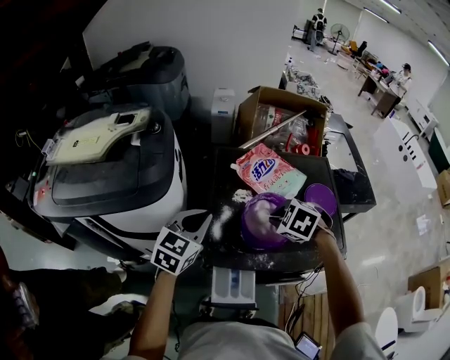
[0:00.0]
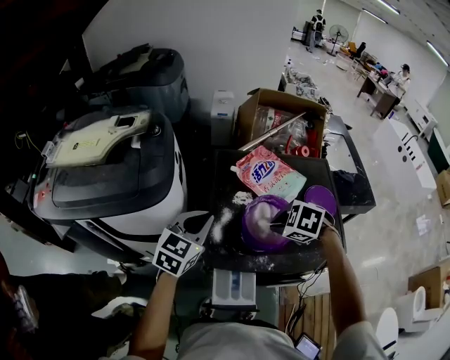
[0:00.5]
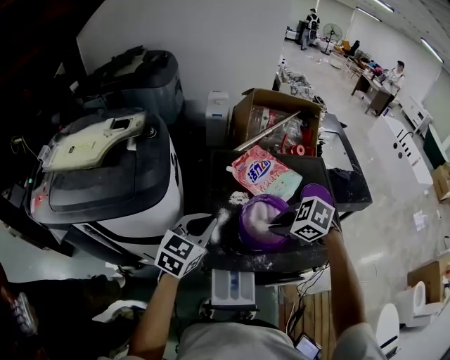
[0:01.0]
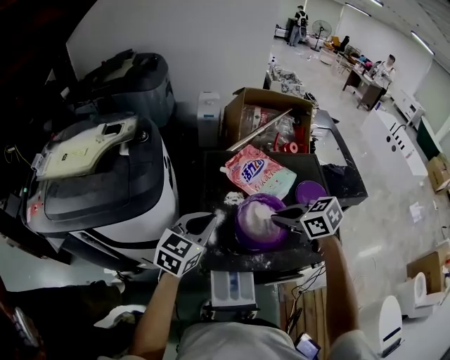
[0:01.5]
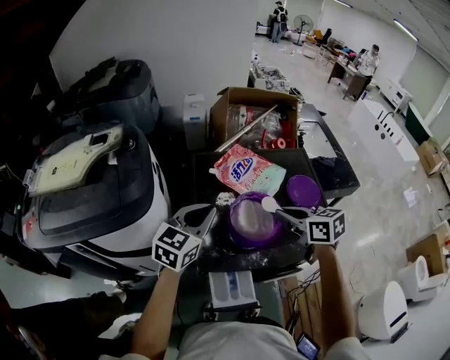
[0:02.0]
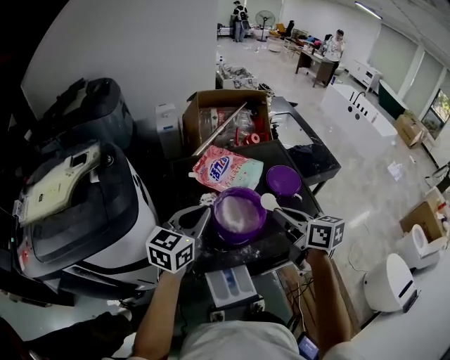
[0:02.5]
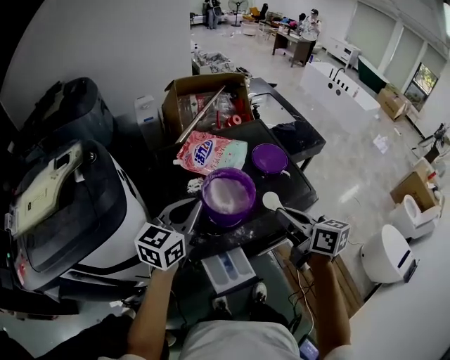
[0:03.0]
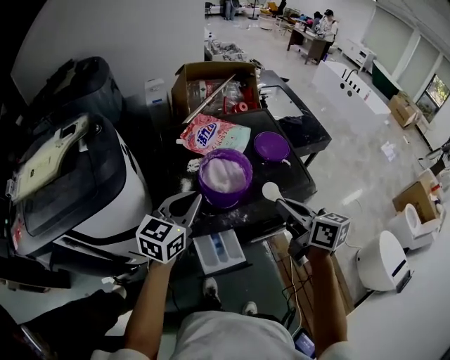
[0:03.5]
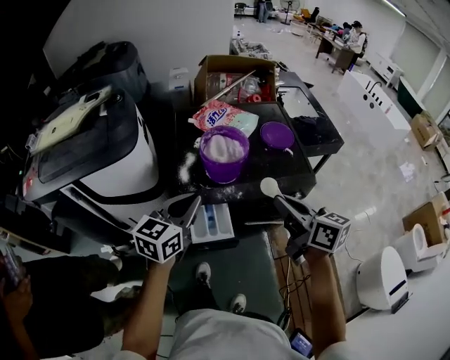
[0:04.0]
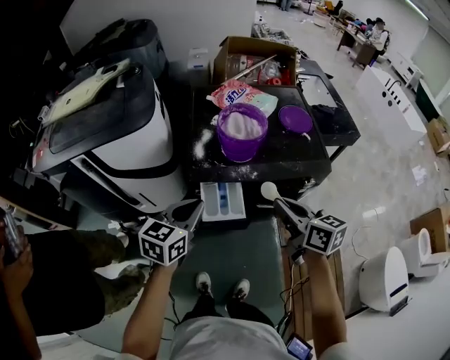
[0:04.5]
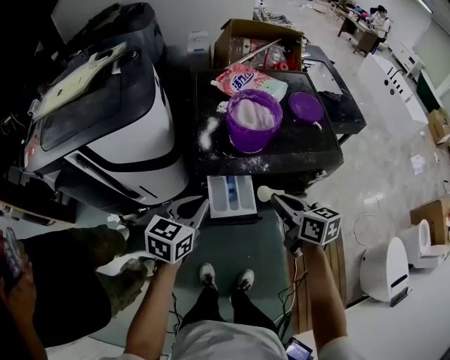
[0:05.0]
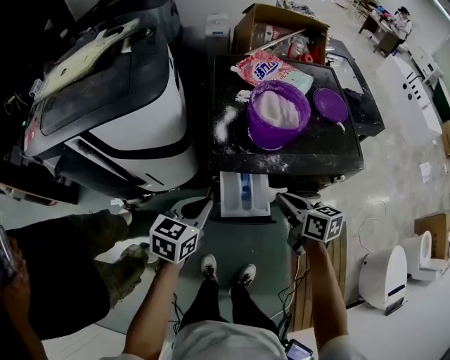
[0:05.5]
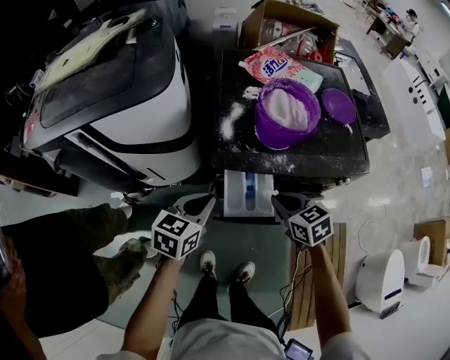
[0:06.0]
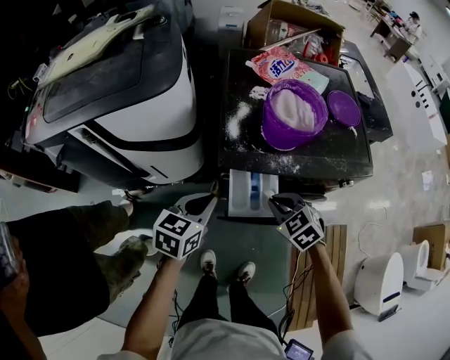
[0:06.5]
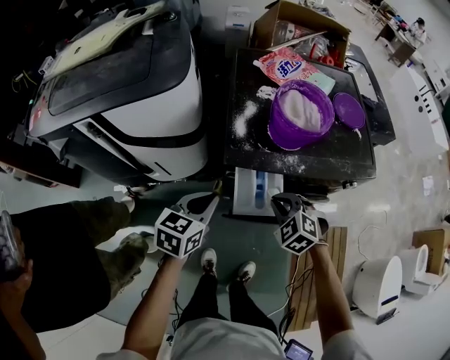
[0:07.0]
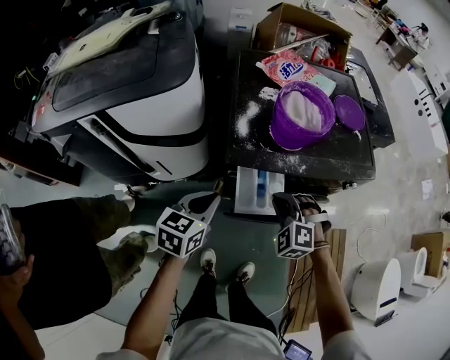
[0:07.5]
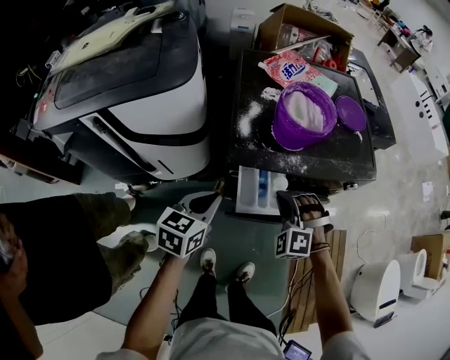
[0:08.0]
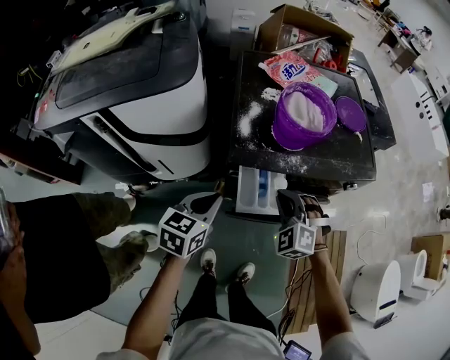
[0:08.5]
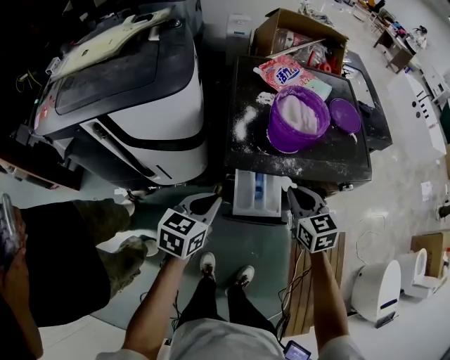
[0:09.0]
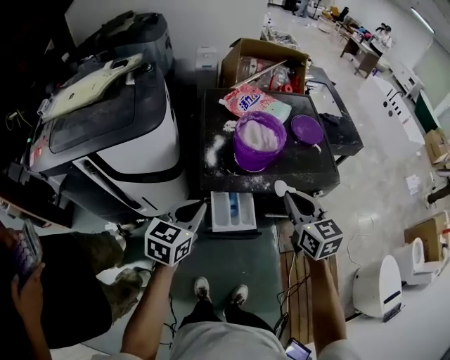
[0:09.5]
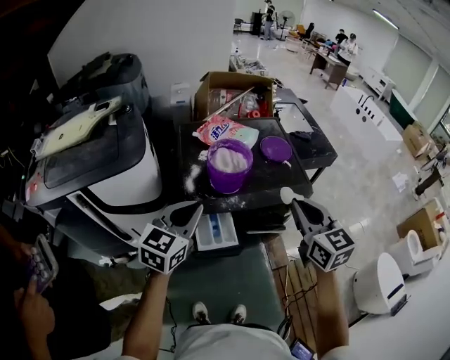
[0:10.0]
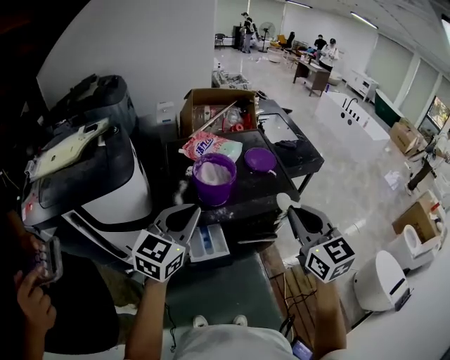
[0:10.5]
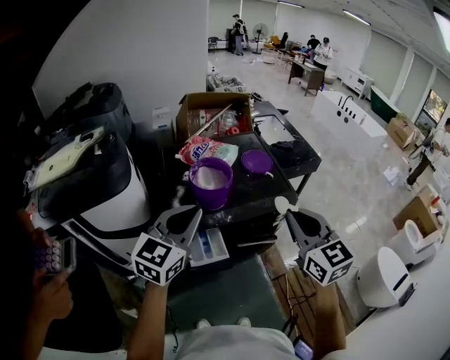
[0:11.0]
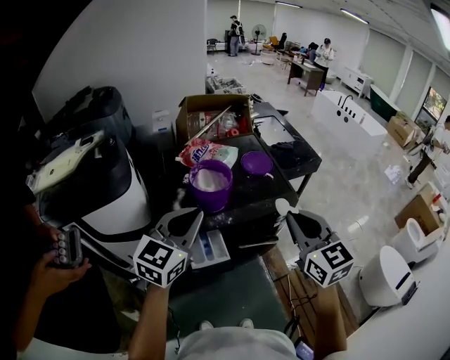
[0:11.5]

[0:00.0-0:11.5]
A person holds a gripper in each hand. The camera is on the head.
0:00.0 to 0:02.0: The left gripper heads to the right, covering approximately 5 cm. The right gripper goes roughly 10 cm upward and to the right, and tilts its fingers roughly 40 degrees upward.
0:02.0 to 0:04.0: The grippers both shift backward by roughly 20 cm. The right gripper swivels roughly 20 degrees.
0:04.0 to 0:06.0: Both grippers move downward and to the left, some 20 cm. The left gripper rotates roughly 20 degrees. The right gripper points its fingers some 30 degrees further downward.
0:06.0 to 0:07.5: The right gripper rotates around the line of its fingers by roughly 60 degrees, counterclockwise from behind.
0:07.5 to 0:09.5: The left gripper heads upward, covering approximately 10 cm. The right gripper shifts about 20 cm upward and to the right, and twists roughly 60 degrees clockwise, seen from behind.
0:09.5 to 0:11.5: The right gripper is displaced upward, to the right and backward by approximately 20 cm; the left gripper travels upward and to the right by about 20 cm, and rotates about 30 degrees.

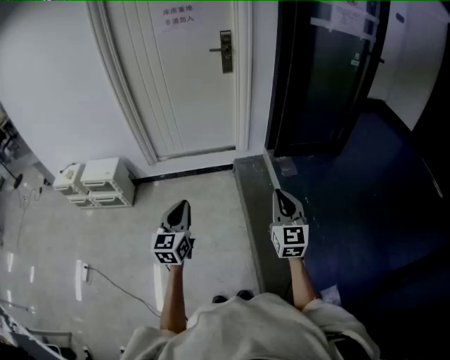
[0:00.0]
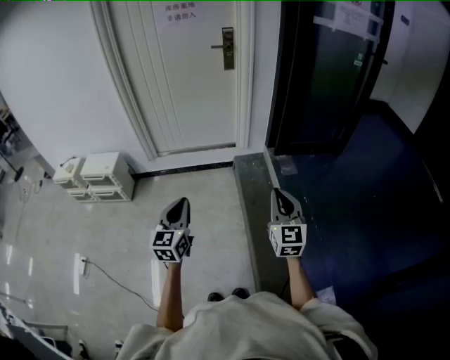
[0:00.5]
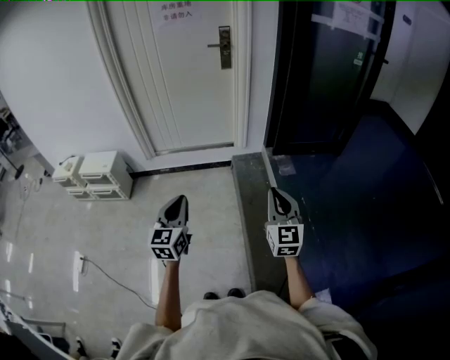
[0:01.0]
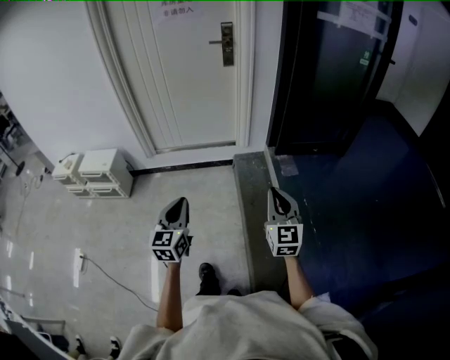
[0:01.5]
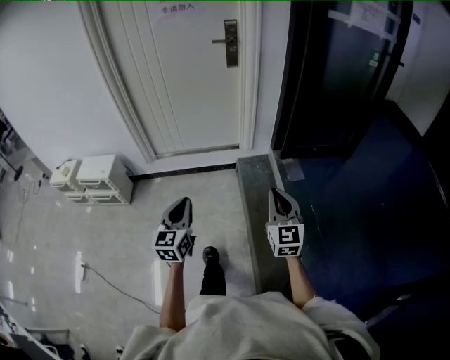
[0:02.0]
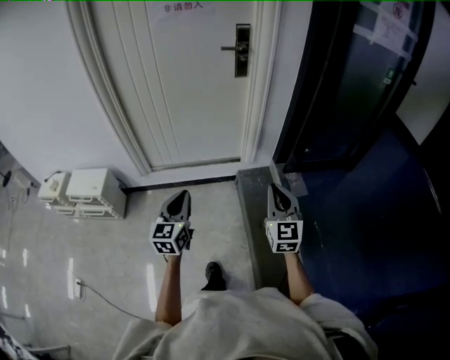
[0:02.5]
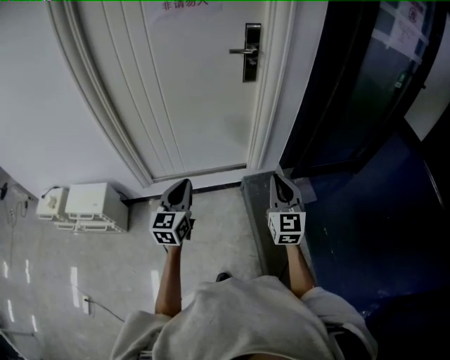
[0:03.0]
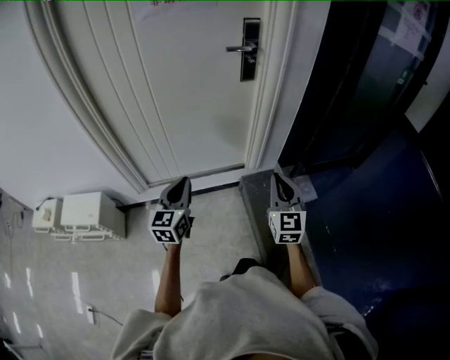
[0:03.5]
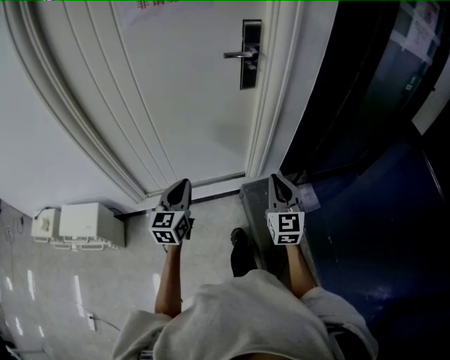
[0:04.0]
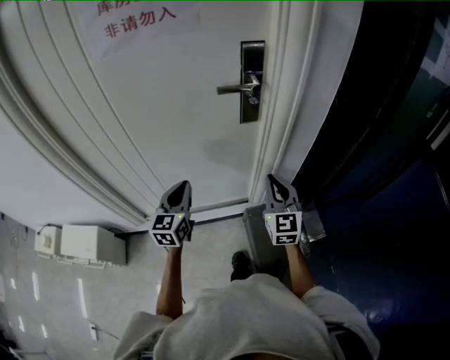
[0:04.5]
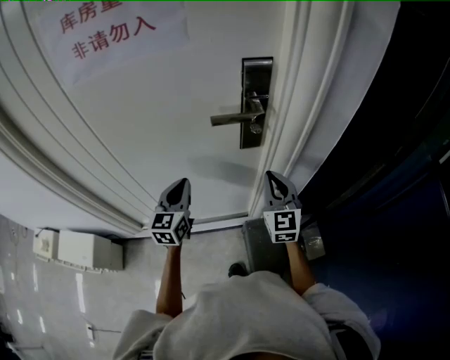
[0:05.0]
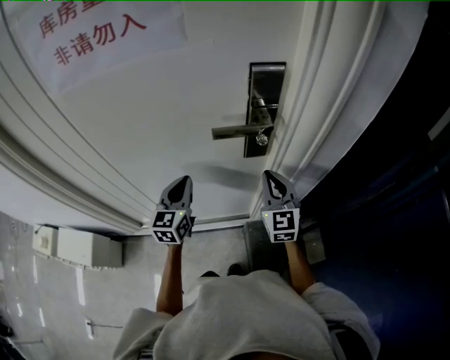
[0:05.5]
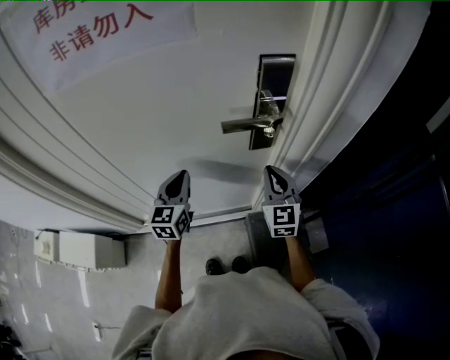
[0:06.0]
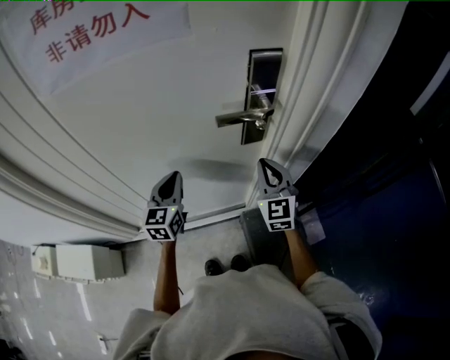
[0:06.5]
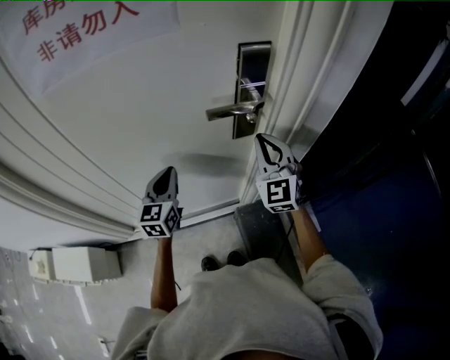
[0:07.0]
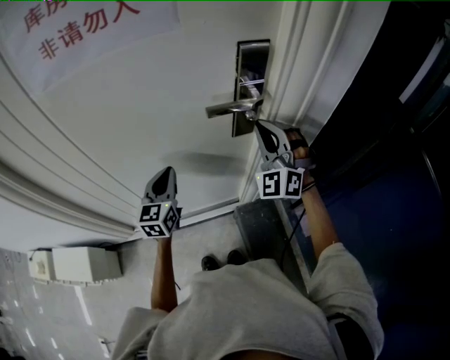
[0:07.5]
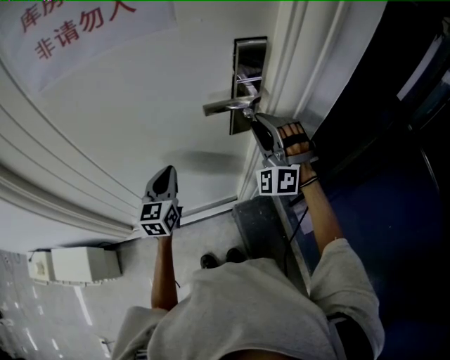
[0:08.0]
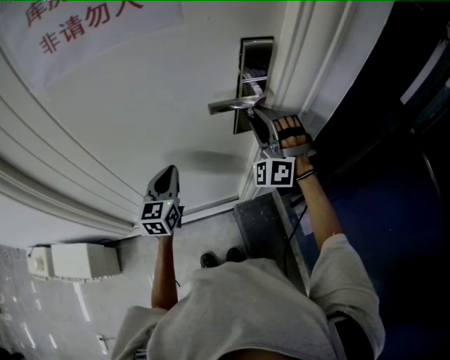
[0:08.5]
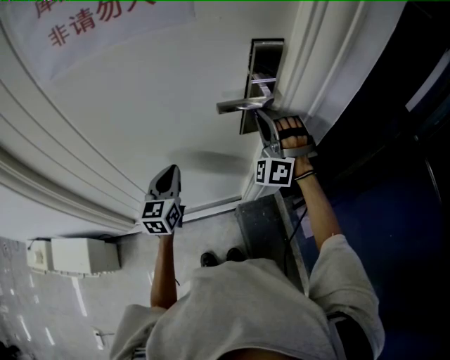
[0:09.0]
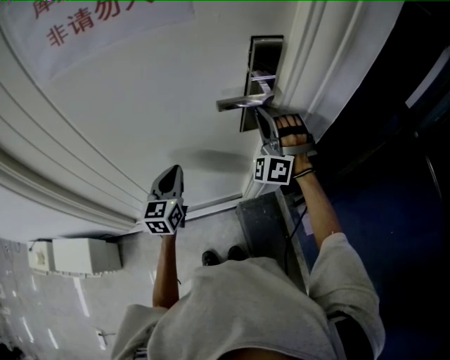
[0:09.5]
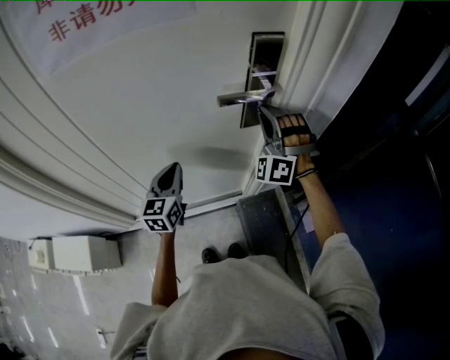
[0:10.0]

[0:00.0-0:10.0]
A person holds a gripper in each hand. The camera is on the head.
0:00.0 to 0:02.0: The two grippers go about 15 cm forward.
0:02.0 to 0:04.0: The pair of grippers is taken forward, about 50 cm.
0:04.0 to 0:06.0: Both grippers move forward, approximately 40 cm.
0:06.0 to 0:08.0: The right gripper goes roughly 10 cm upward, rolls counterclockwise, seen from behind, by some 70 degrees, and opens up.
0:08.0 to 0:10.0: The grippers make only small movements.

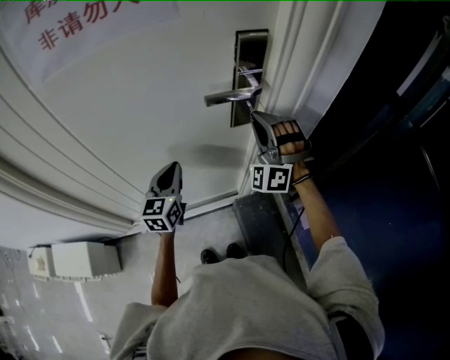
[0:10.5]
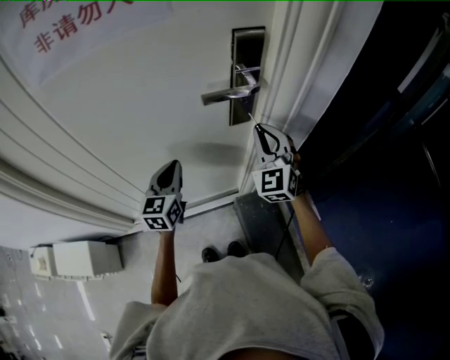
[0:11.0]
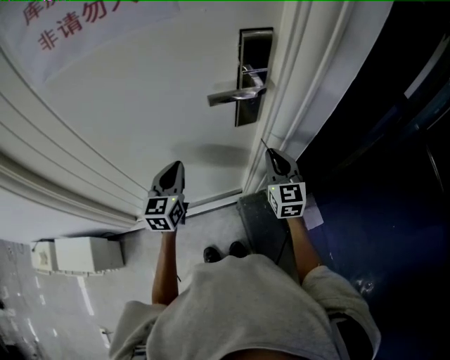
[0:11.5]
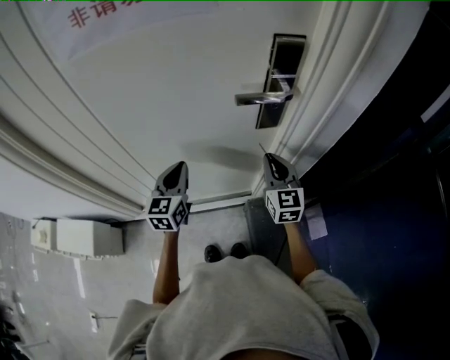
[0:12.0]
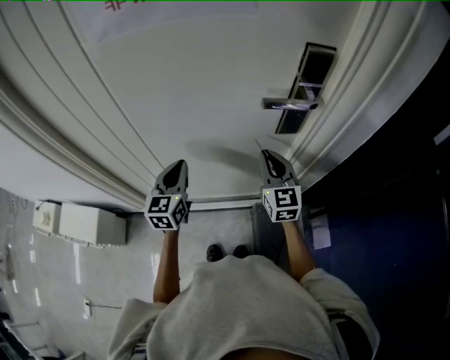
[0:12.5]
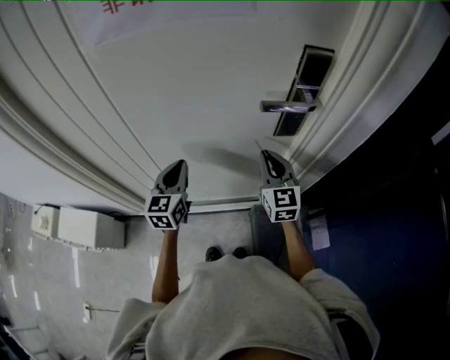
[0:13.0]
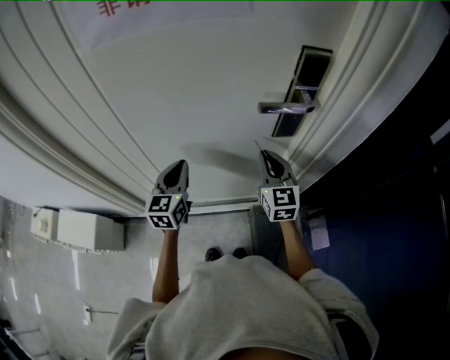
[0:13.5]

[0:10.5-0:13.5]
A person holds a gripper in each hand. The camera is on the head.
0:10.5 to 0:12.0: The right gripper moves downward, approximately 10 cm, and twists about 80 degrees clockwise, seen from behind.
0:12.0 to 0:13.5: The right gripper shifts approximately 5 cm to the left.

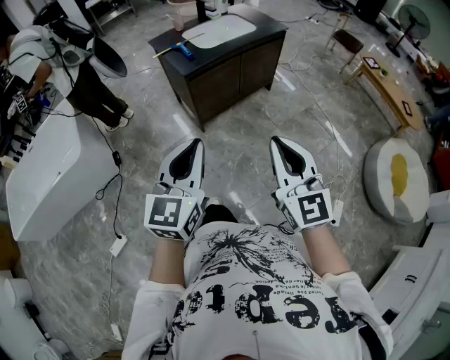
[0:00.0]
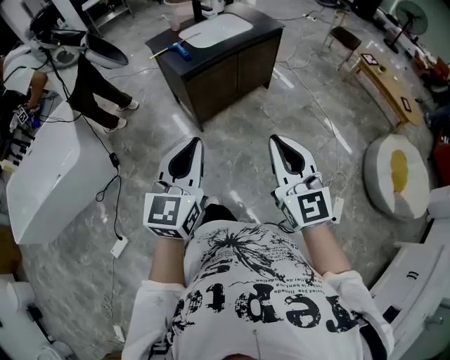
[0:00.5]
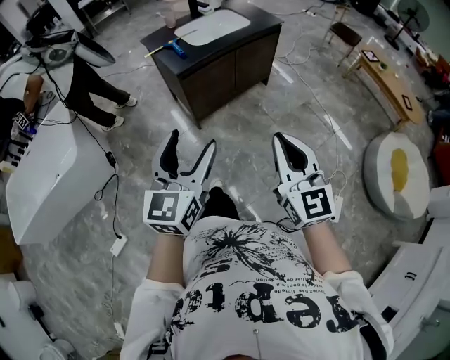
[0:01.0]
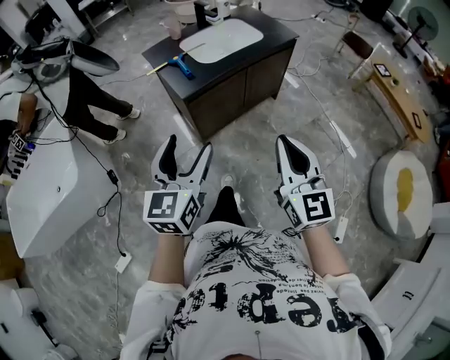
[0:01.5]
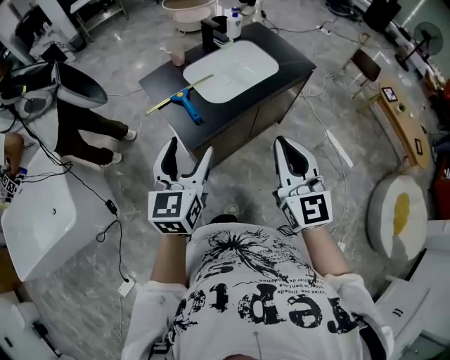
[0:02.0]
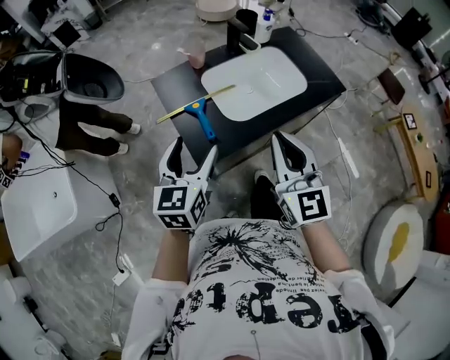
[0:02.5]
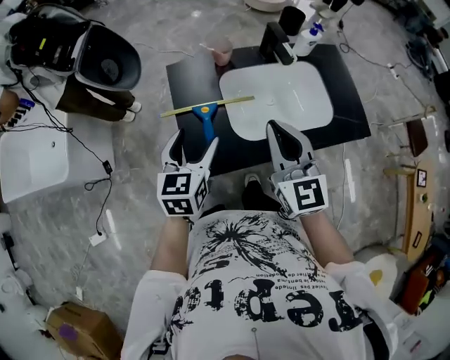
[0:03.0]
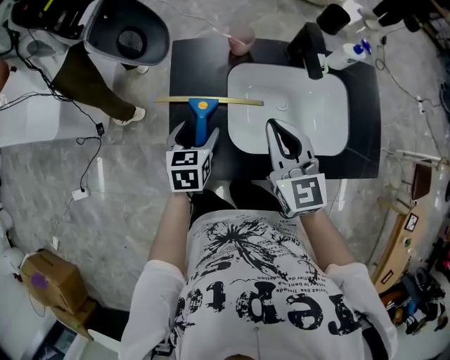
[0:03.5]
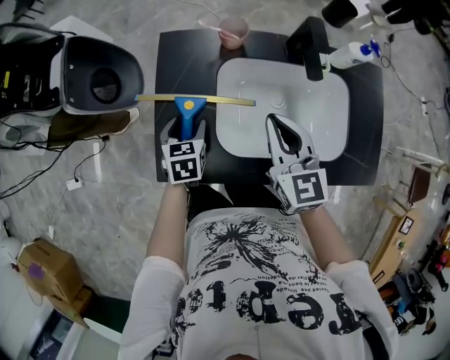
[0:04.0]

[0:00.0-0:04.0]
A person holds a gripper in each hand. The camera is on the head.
0:00.0 to 0:02.0: The two grippers travel together, forward, some 50 cm. The left gripper opens its fingers.
0:02.0 to 0:04.0: The left gripper shifts by approximately 50 cm, and tilts its fingers roughly 40 degrees downward, while the right gripper shifts by about 50 cm, and rotates about 50 degrees.
